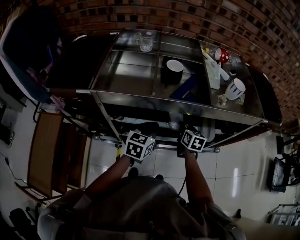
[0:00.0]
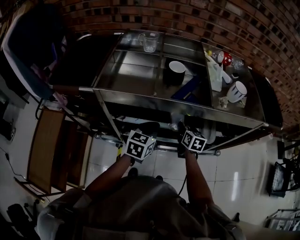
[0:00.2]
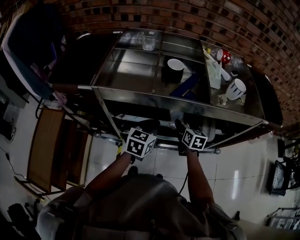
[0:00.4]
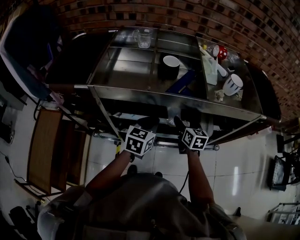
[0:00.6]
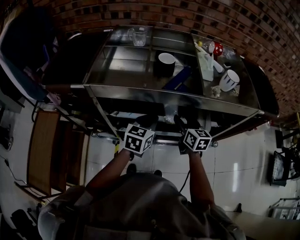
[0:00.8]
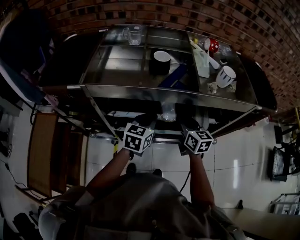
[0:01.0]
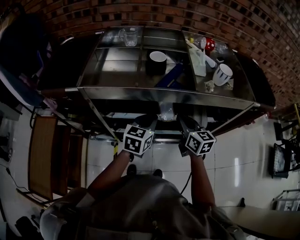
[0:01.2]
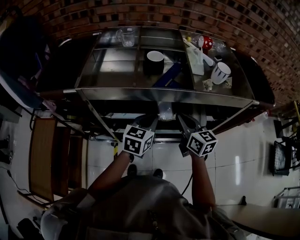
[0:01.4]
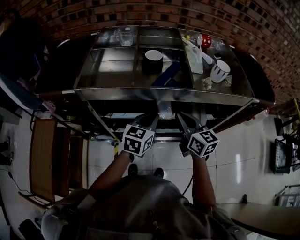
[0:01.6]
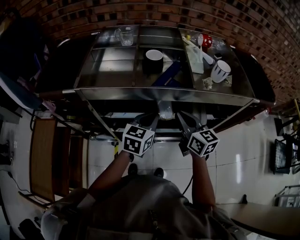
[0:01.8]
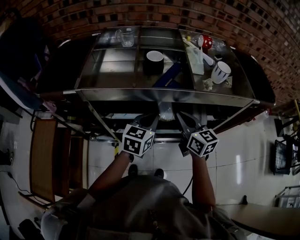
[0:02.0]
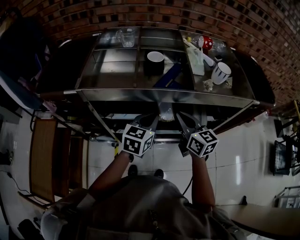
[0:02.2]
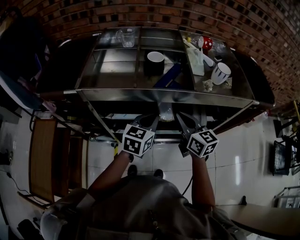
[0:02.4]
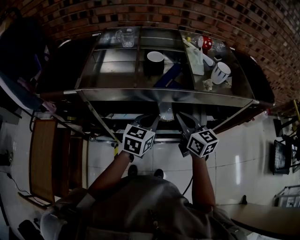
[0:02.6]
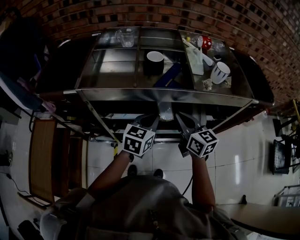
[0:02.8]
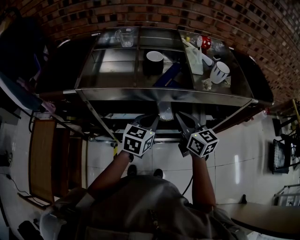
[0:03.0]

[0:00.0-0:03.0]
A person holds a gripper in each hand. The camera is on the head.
0:00.0 to 0:01.6: The left gripper heads to the right, covering some 5 cm; the right gripper travels upward and backward by approximately 15 cm, turns by about 30 degrees, and opens, then closes again.
0:01.6 to 0:03.0: The grippers move only a little.

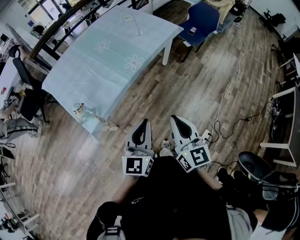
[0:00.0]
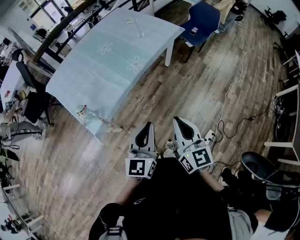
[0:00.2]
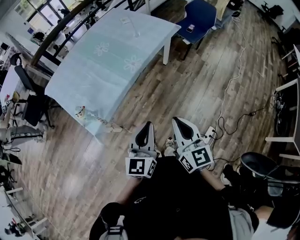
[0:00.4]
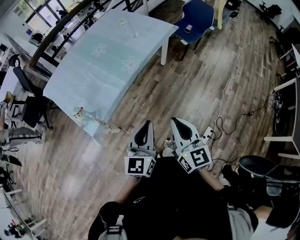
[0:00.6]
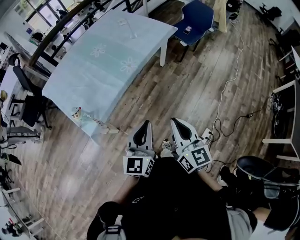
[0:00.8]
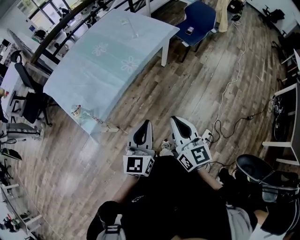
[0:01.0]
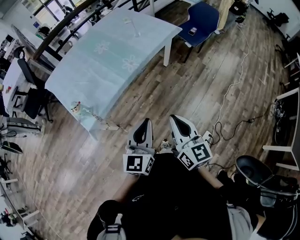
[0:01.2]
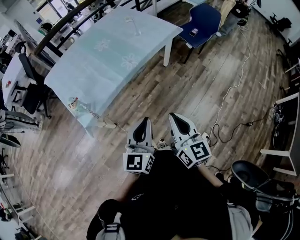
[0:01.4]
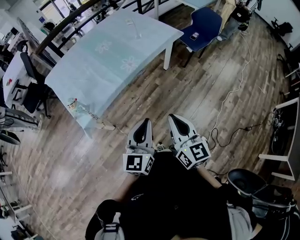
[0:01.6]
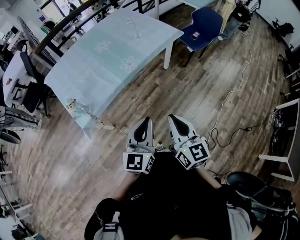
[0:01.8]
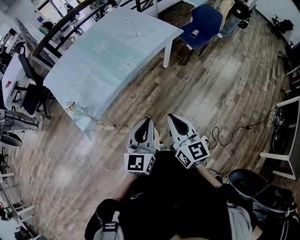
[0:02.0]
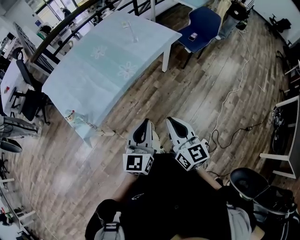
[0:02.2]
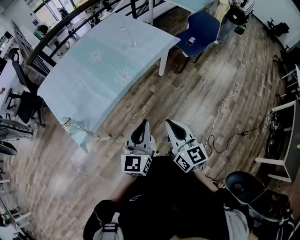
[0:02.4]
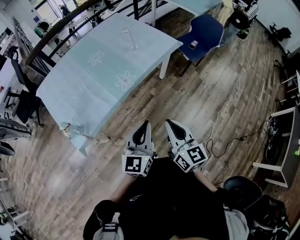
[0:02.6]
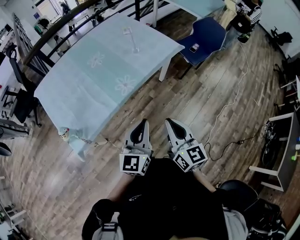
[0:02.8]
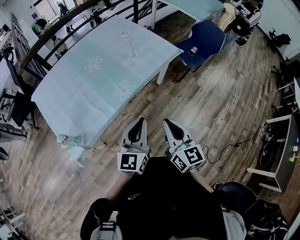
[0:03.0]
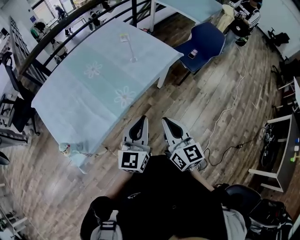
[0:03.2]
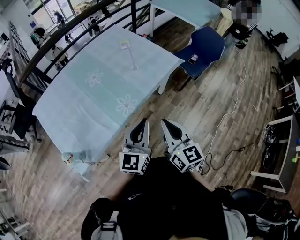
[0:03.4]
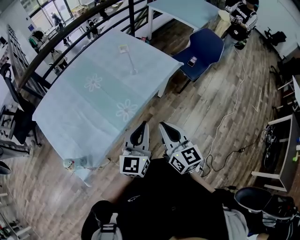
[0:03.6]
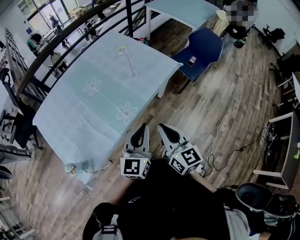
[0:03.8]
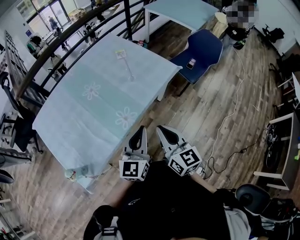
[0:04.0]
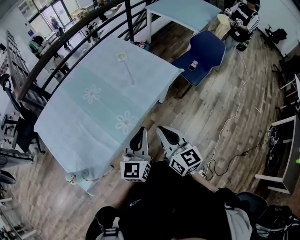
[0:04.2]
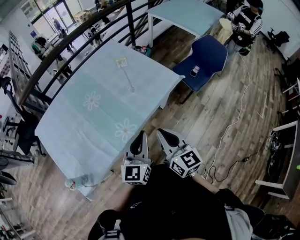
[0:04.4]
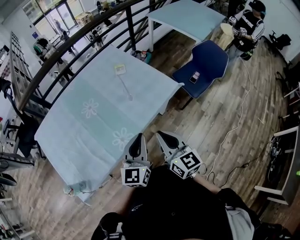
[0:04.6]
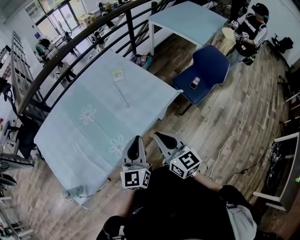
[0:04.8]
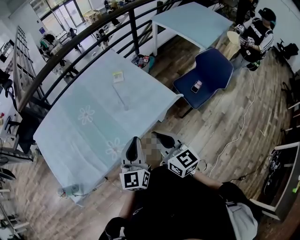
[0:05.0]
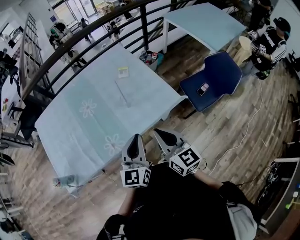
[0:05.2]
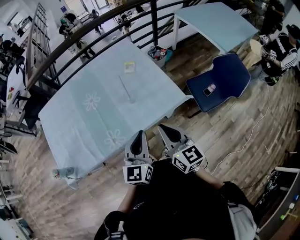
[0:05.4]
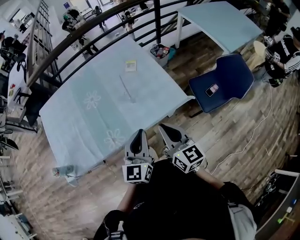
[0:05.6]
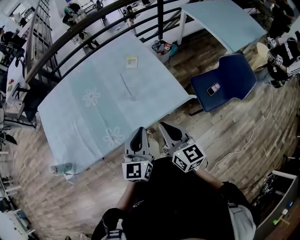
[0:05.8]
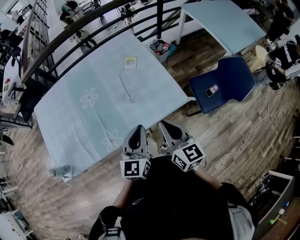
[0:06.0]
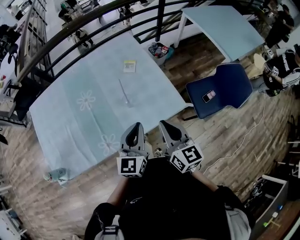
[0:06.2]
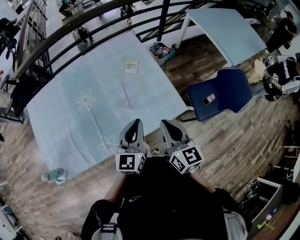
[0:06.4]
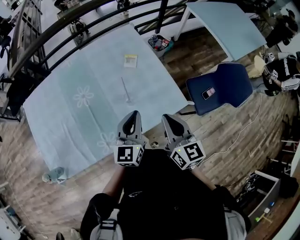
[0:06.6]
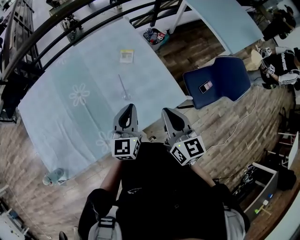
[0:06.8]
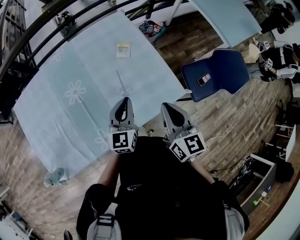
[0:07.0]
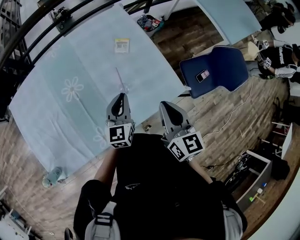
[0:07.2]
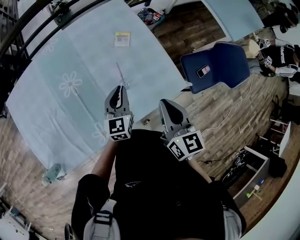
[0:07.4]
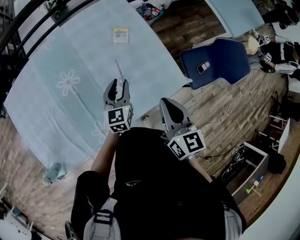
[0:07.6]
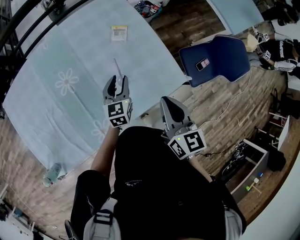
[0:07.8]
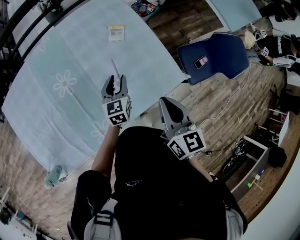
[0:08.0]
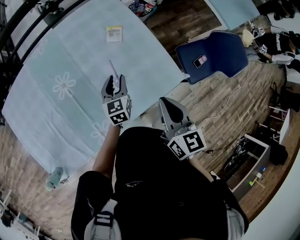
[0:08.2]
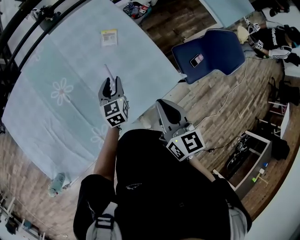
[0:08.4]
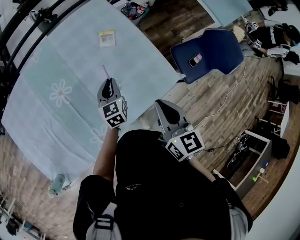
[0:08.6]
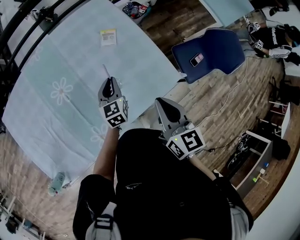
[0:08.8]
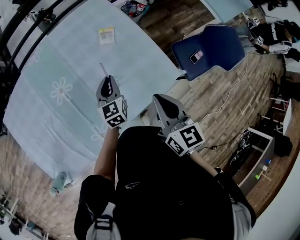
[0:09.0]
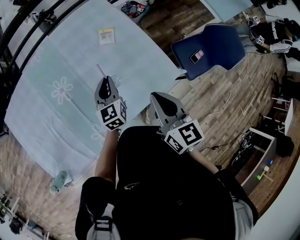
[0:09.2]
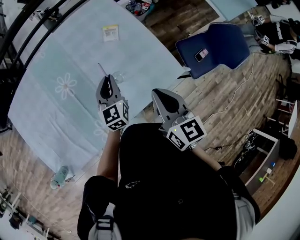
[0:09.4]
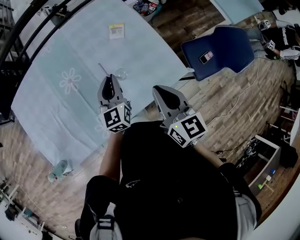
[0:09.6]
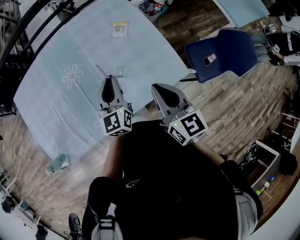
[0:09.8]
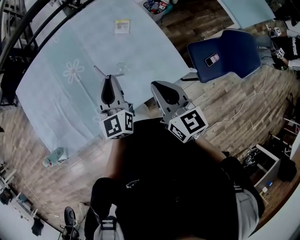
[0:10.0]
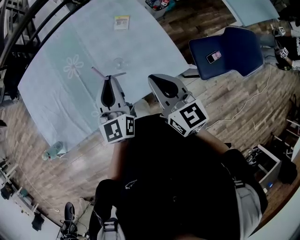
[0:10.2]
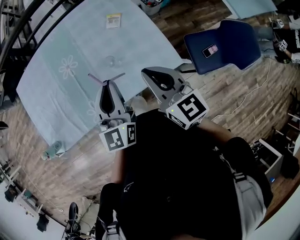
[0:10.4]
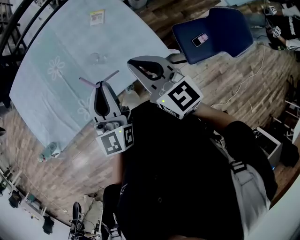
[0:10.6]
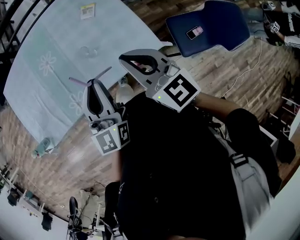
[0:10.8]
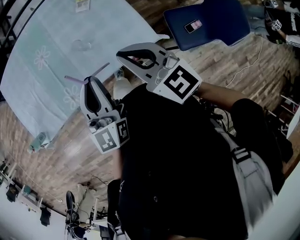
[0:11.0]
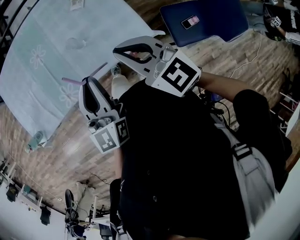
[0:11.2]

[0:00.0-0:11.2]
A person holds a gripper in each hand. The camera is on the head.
0:00.0 to 0:01.6: Both grippers move to the right, about 10 cm.
0:01.6 to 0:03.2: The two grippers go approximately 25 cm forward.
0:03.2 to 0:04.8: Both grippers travel together forward, approximately 20 cm.
0:04.8 to 0:06.4: The grippers both shift forward and to the right by approximately 20 cm.
0:06.4 to 0:08.0: The right gripper shifts about 5 cm forward. The left gripper shifts about 25 cm downward and forward, turns by some 20 degrees, and opens its fingers.
0:08.0 to 0:09.6: The left gripper moves upward, about 10 cm, and closes its fingers.
0:09.6 to 0:11.2: The left gripper goes about 25 cm backward and upward. The right gripper is displaced to the right and backward by about 10 cm, and turns by some 40 degrees.

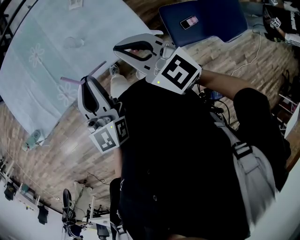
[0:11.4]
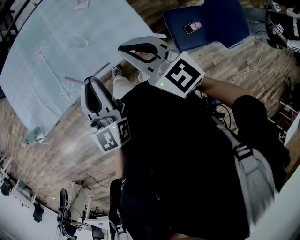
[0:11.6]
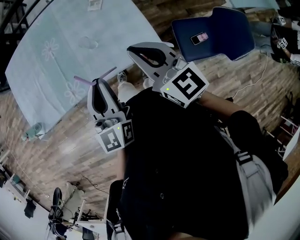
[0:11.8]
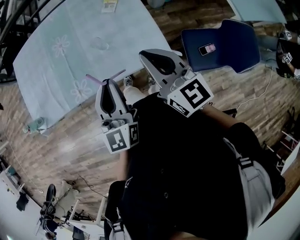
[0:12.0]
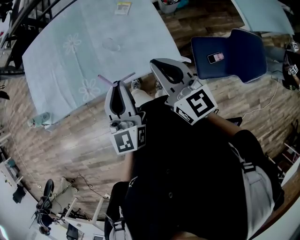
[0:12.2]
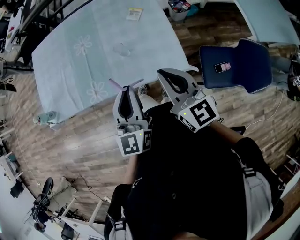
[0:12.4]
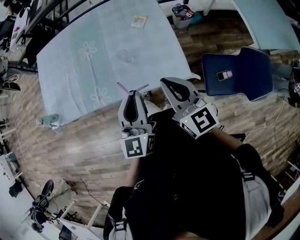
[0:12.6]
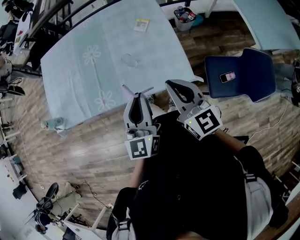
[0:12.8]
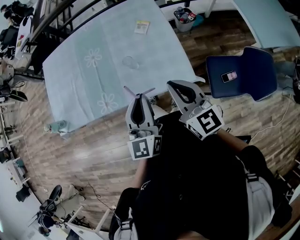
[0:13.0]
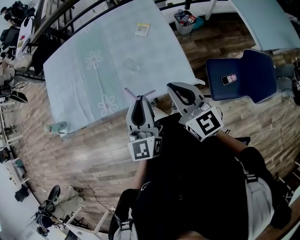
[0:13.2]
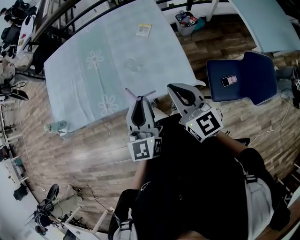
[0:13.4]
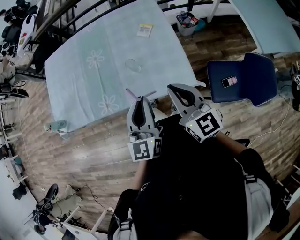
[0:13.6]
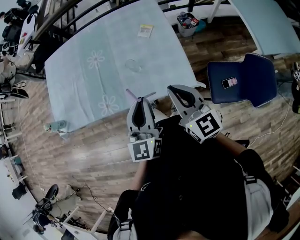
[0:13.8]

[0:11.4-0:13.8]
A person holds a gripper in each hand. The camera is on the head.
0:11.4 to 0:12.6: There are only small adjustments of the grippers.
0:12.6 to 0:13.8: Both grippers stay about where they are.

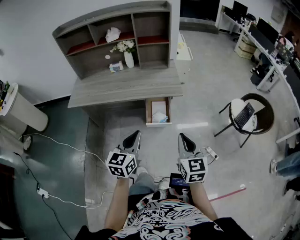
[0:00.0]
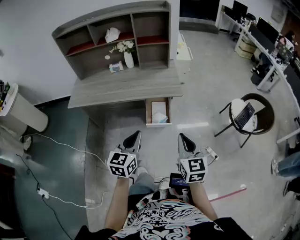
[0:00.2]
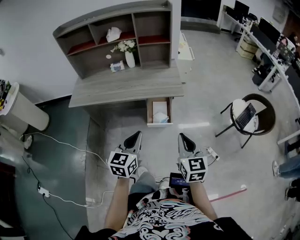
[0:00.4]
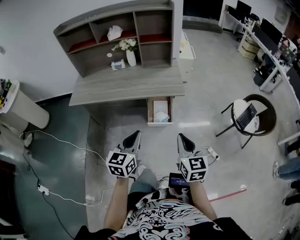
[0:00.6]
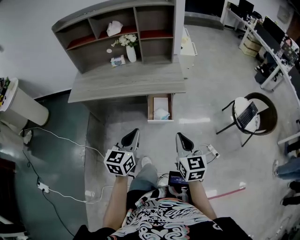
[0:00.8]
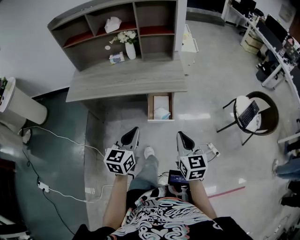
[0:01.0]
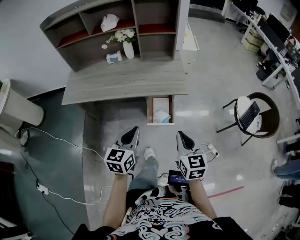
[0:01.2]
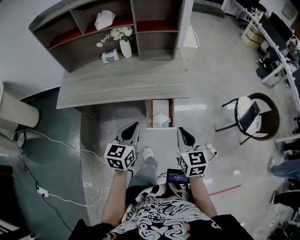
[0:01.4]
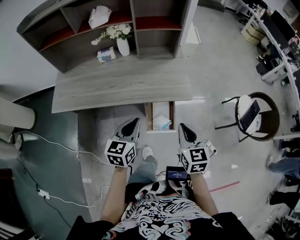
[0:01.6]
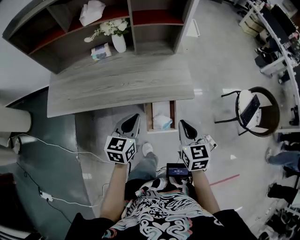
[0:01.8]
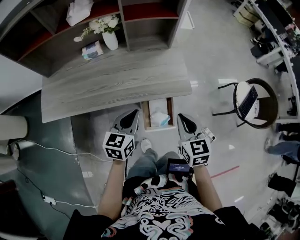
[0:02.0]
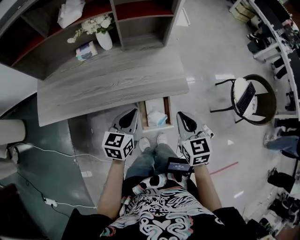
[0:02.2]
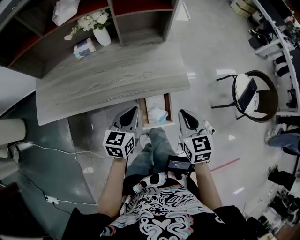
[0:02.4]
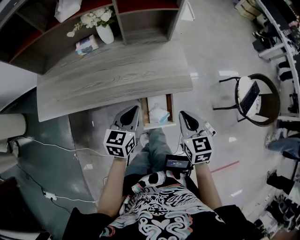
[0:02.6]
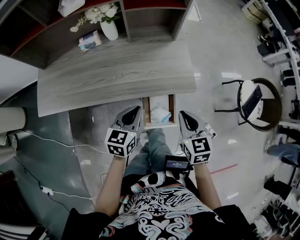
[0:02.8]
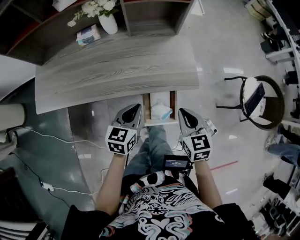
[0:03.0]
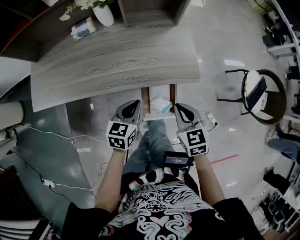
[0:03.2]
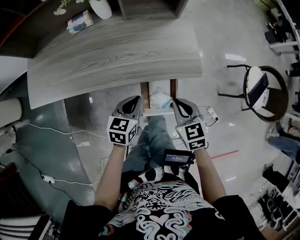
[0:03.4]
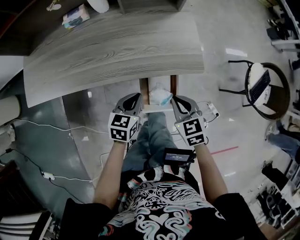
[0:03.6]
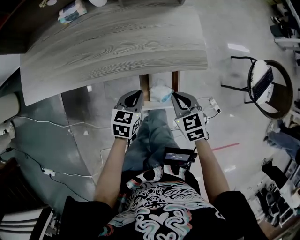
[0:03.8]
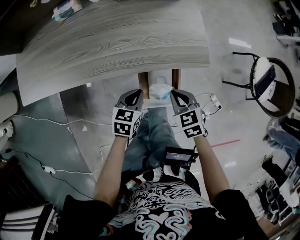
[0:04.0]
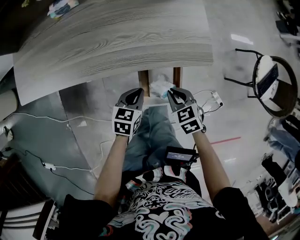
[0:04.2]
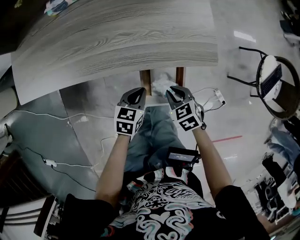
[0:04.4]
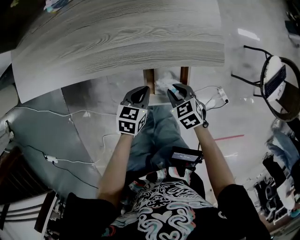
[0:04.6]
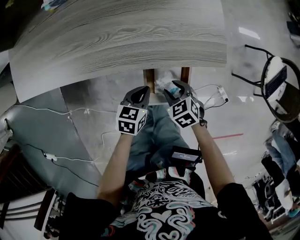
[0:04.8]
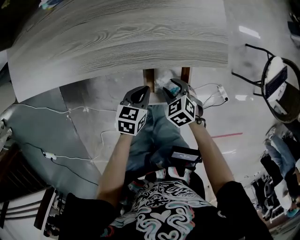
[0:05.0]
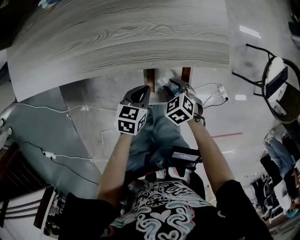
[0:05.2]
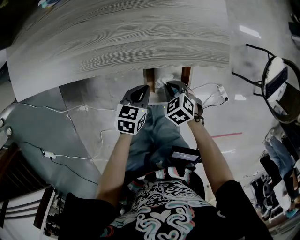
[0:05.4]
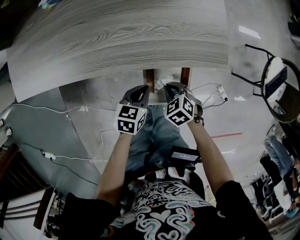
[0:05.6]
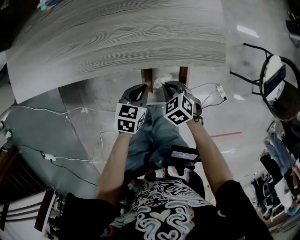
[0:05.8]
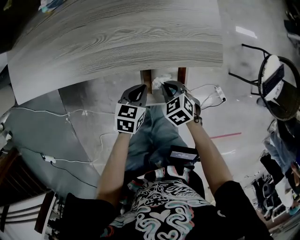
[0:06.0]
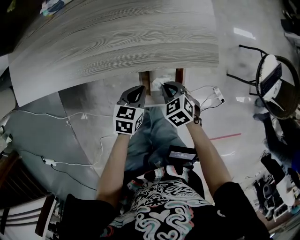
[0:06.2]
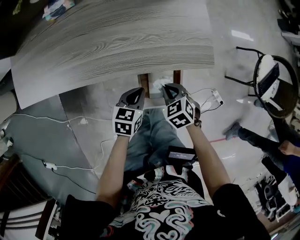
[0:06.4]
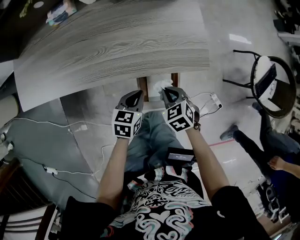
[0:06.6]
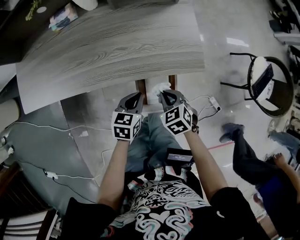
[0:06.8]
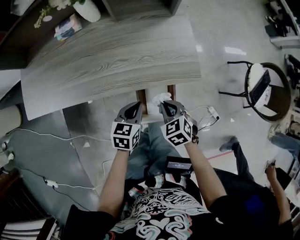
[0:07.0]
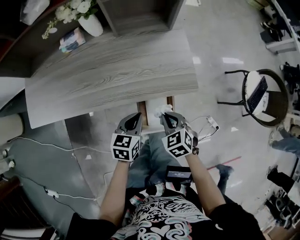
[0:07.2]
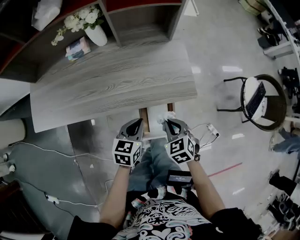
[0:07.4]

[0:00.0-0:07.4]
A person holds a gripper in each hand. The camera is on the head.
0:00.0 to 0:01.4: Both grippers move forward, some 15 cm.
0:01.4 to 0:03.0: Both grippers travel together forward and downward, roughly 15 cm.
0:03.0 to 0:04.4: The two grippers go roughly 20 cm downward. The left gripper changes its angle by roughly 20 degrees. Meanwhile the right gripper rotates some 30 degrees.
0:04.4 to 0:06.0: The right gripper opens, then closes once more.
0:06.0 to 0:07.4: The grippers both shift upward by roughly 15 cm.
